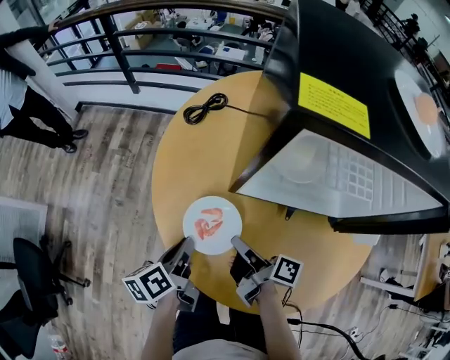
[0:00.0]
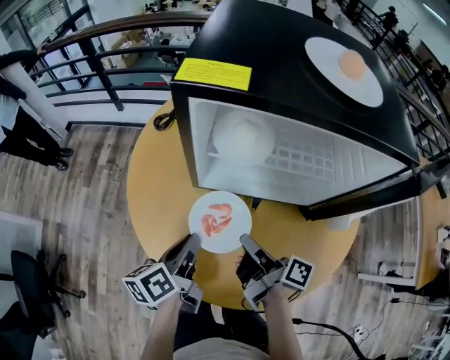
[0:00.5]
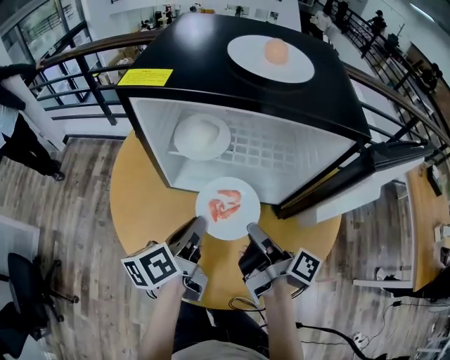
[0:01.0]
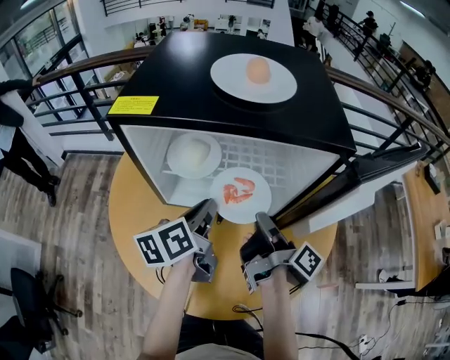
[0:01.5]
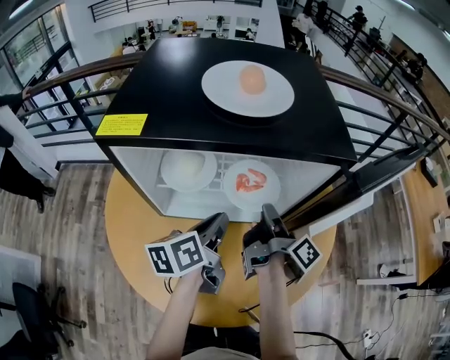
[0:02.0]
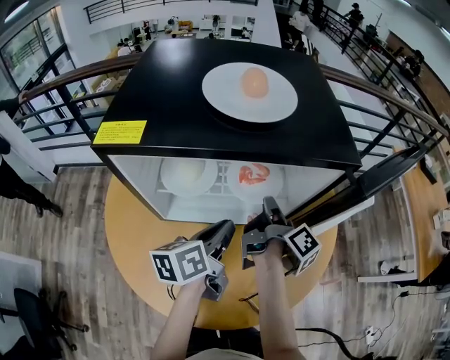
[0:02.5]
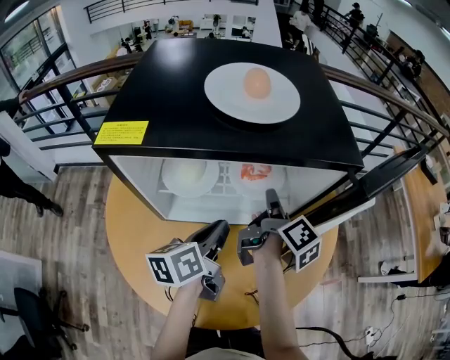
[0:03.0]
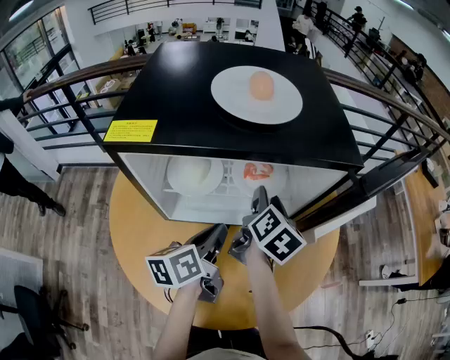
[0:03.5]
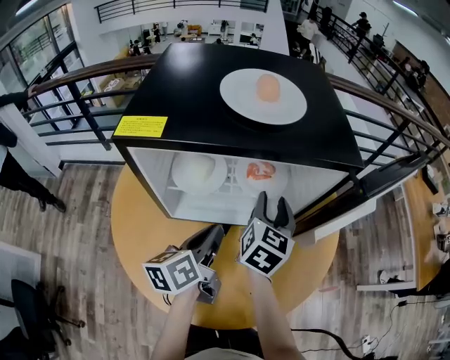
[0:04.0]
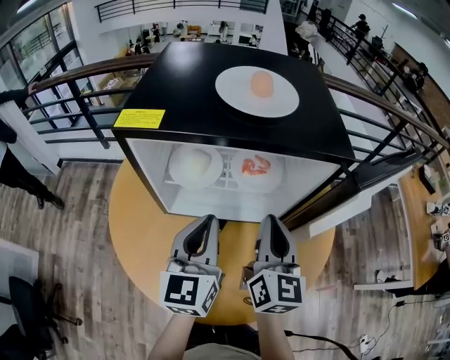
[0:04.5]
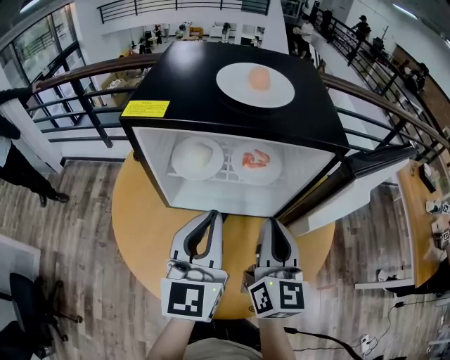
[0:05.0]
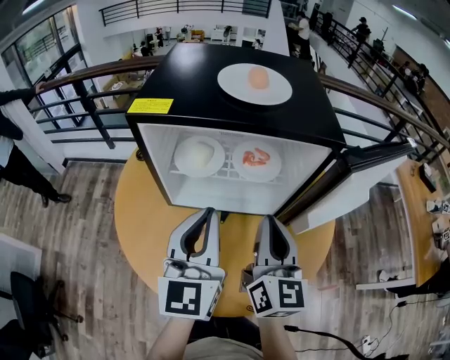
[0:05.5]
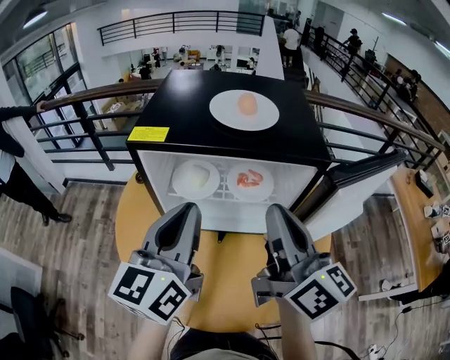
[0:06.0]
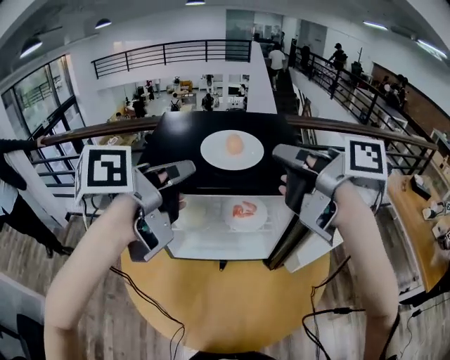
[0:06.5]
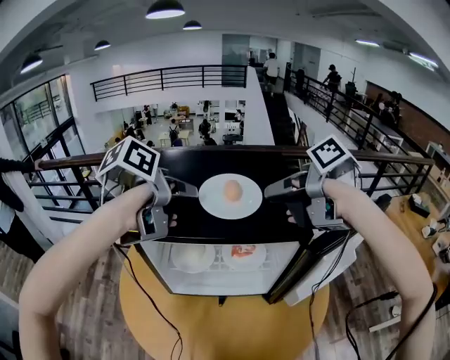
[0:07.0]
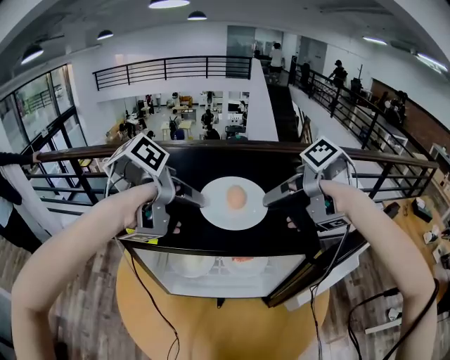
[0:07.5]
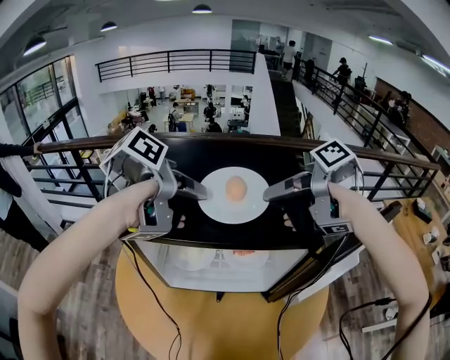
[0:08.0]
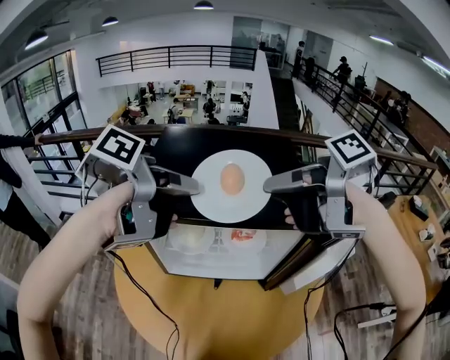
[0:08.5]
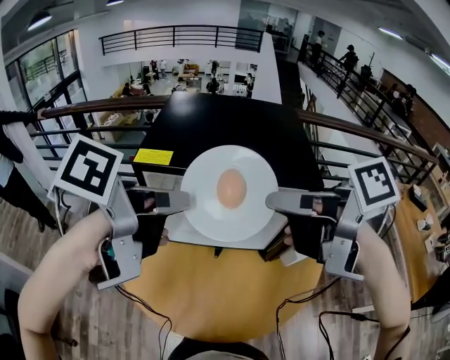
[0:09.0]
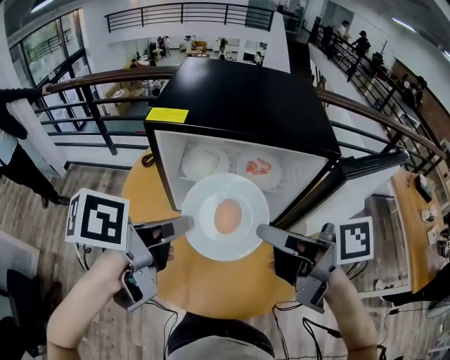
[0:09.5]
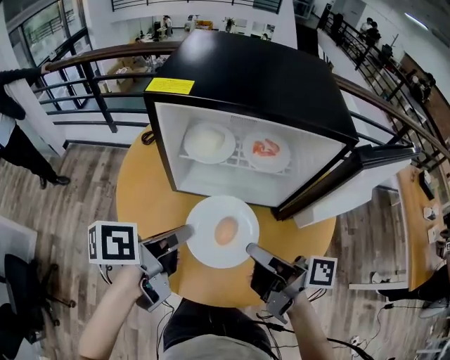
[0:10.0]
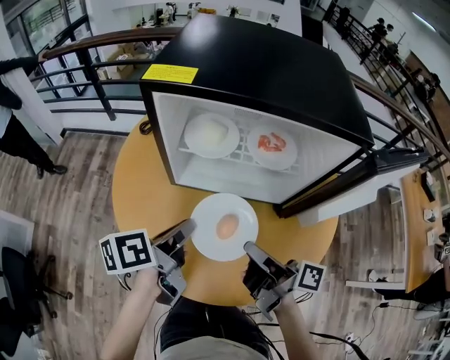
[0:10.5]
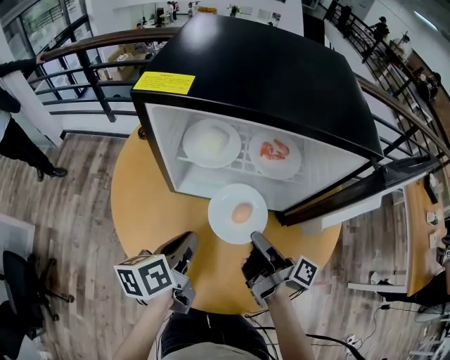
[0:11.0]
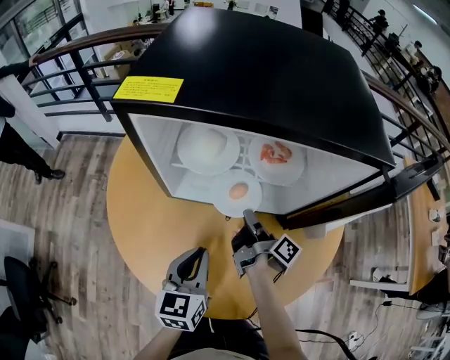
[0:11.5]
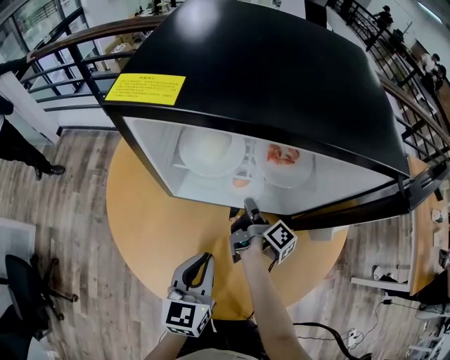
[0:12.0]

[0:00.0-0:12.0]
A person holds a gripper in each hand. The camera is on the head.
0:00.0 to 0:02.0: The right gripper moves roughly 35 cm, and turns by some 40 degrees. The left gripper changes place by some 35 cm, and turns by some 30 degrees.
0:02.0 to 0:04.0: The right gripper rolls counterclockwise, seen from behind, by approximately 80 degrees, and opens up.
0:04.0 to 0:06.0: The right gripper goes some 25 cm upward and backward, turns by about 50 degrees, and closes up, while the left gripper travels upward by some 20 cm, and swivels some 40 degrees.
0:06.0 to 0:08.0: The left gripper shifts by some 20 cm, points its fingers about 40 degrees further downward, and opens its fingers, while the right gripper ends up approximately 20 cm from where it was, and tips its fingers downward by roughly 40 degrees.
0:08.0 to 0:10.0: The right gripper ends up some 35 cm from where it was, and turns by approximately 30 degrees, while the left gripper shifts by roughly 35 cm.
0:10.0 to 0:12.0: The right gripper shifts some 30 cm downward and forward, and turns by approximately 40 degrees; the left gripper is displaced downward by some 10 cm, and rolls clockwise, seen from behind, by approximately 40 degrees.

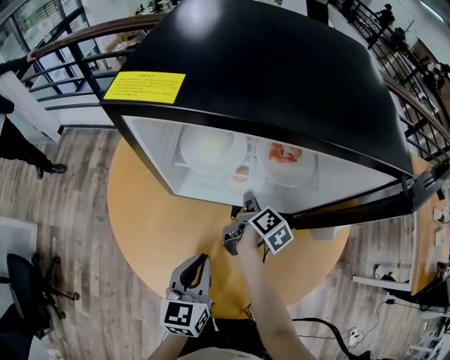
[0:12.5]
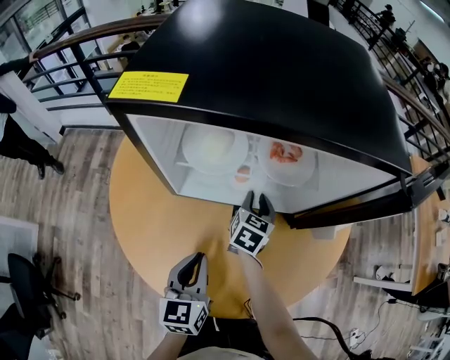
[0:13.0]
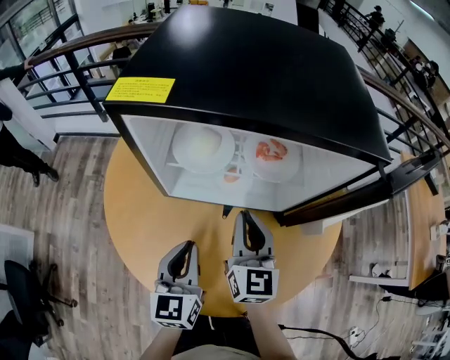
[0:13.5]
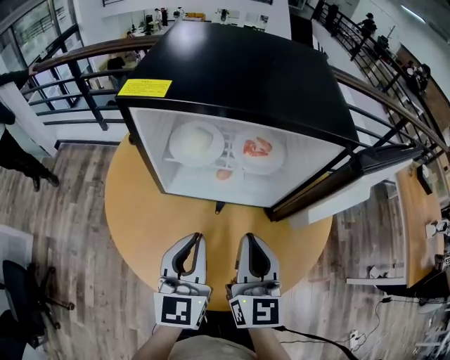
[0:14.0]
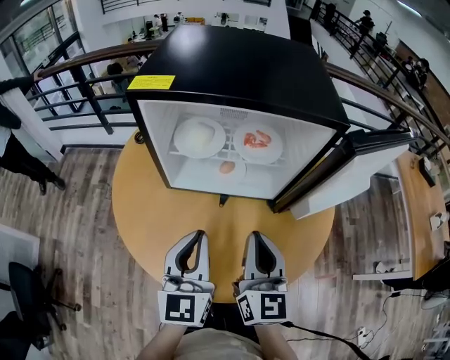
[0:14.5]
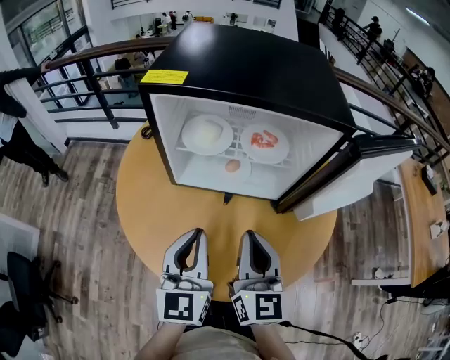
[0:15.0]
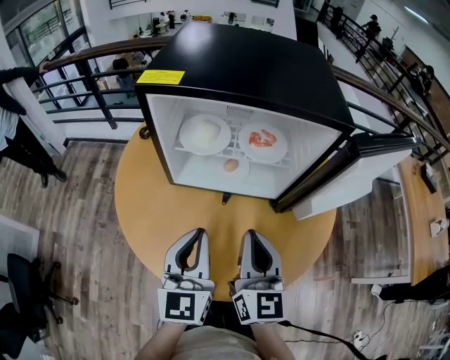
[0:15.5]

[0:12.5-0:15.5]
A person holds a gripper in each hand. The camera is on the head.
0:12.5 to 0:14.0: The right gripper travels upward and backward by about 30 cm, and rotates around the line of its fingers by about 60 degrees, counterclockwise from behind, while the left gripper heads upward, covering some 15 cm, and rotates roughly 20 degrees.
0:14.0 to 0:15.5: The grippers stay close to where they were, moving slightly.

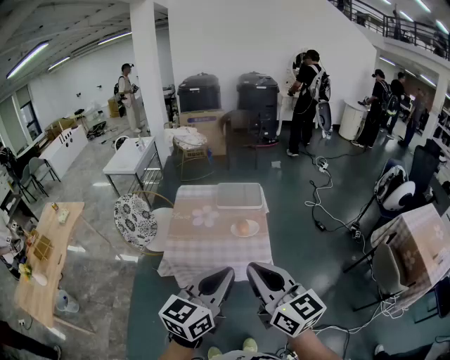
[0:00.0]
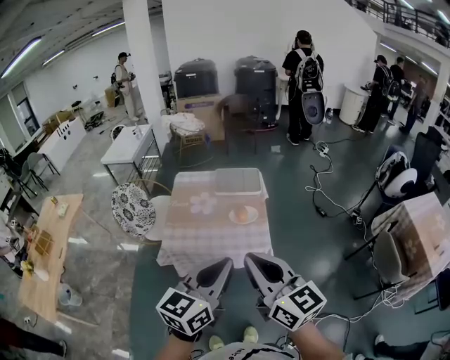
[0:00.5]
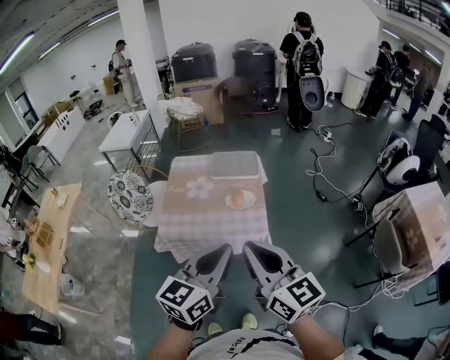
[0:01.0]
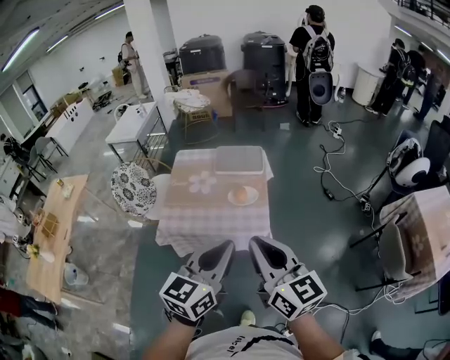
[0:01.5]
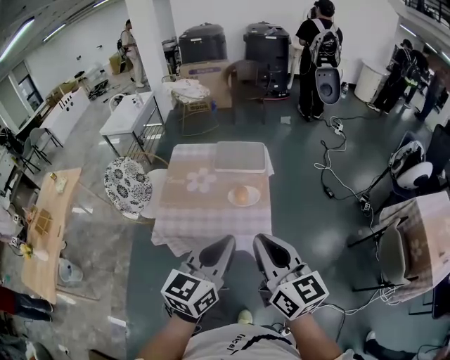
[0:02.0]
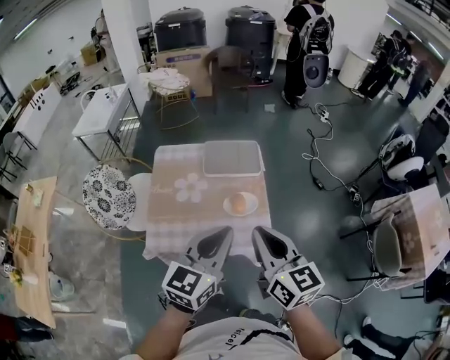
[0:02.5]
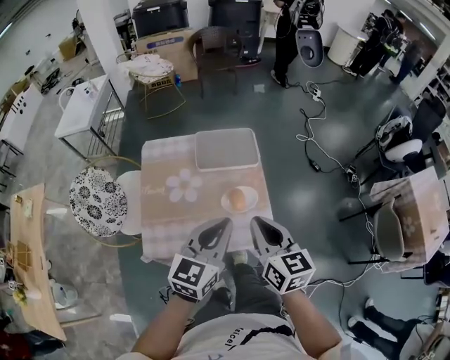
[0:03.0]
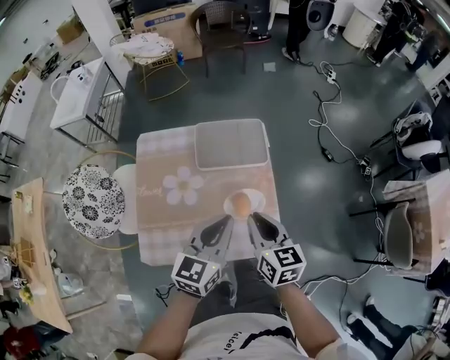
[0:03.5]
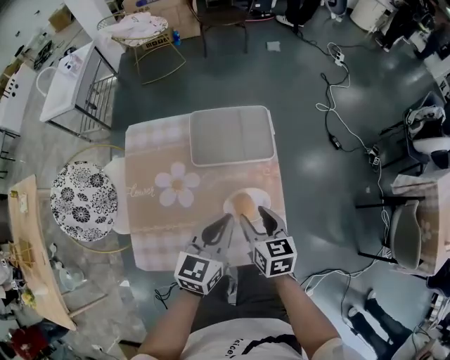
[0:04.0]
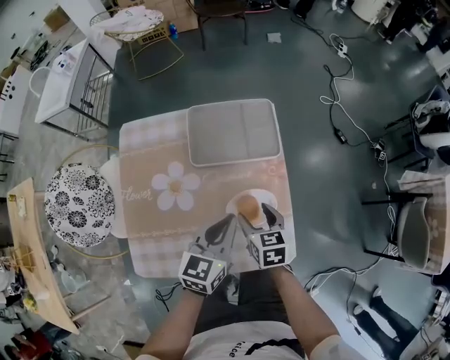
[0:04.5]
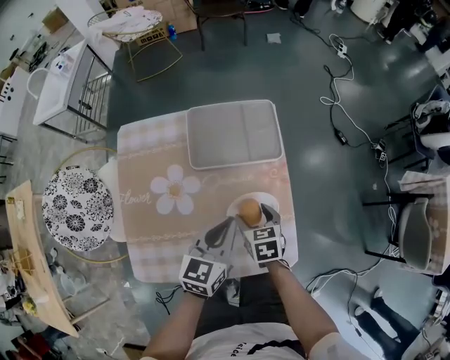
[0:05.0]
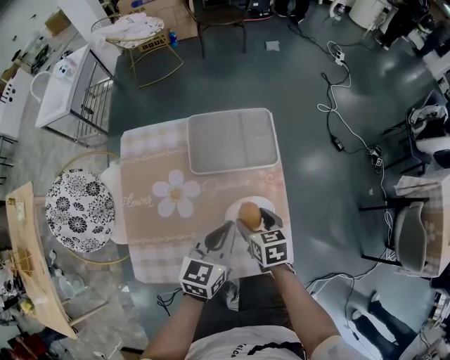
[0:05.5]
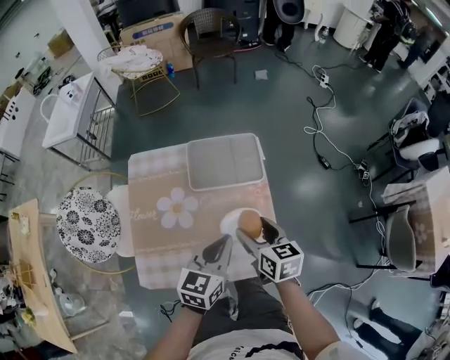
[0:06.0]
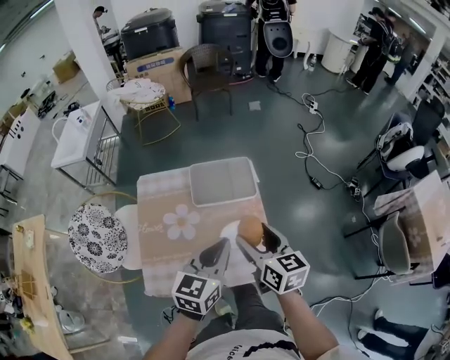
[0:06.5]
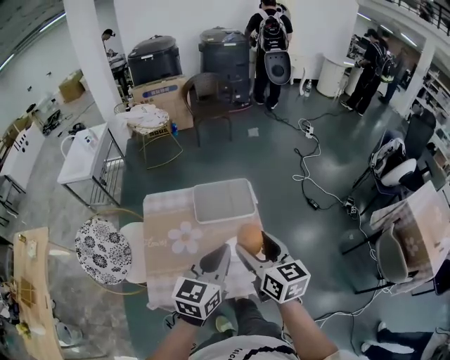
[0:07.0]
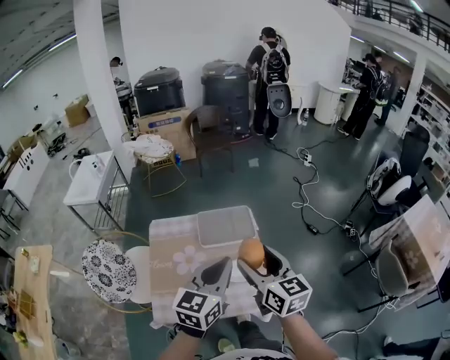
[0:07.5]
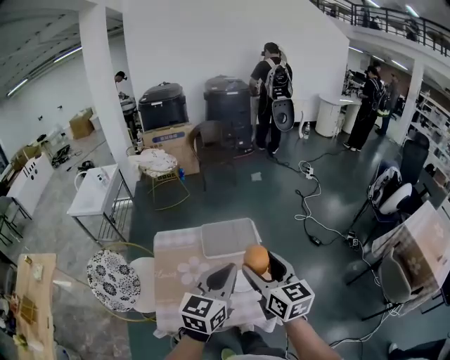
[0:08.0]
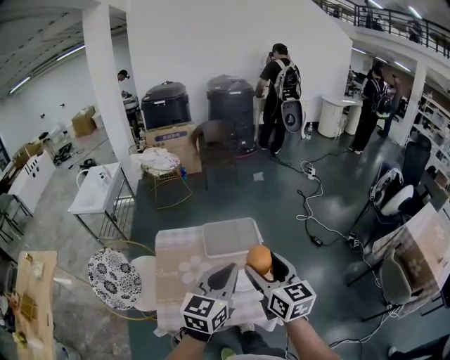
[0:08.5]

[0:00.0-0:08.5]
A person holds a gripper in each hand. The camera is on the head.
0:00.0 to 0:02.0: The right gripper moves forward, to the right and downward, some 15 cm; the left gripper goes roughly 10 cm forward and downward.
0:02.0 to 0:04.0: The left gripper travels forward and downward by about 40 cm; the right gripper goes some 50 cm downward and forward, angles its fingers downward, by approximately 40 degrees, and opens up.
0:04.0 to 0:06.5: The two grippers go some 15 cm upward.
0:06.5 to 0:08.5: The grippers both shift upward by about 15 cm.

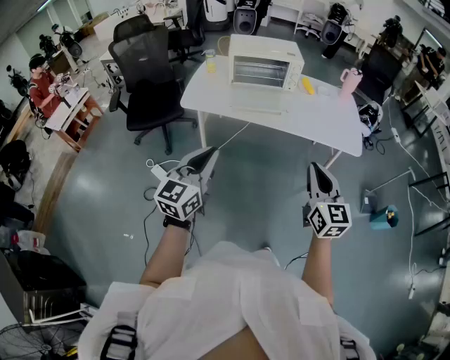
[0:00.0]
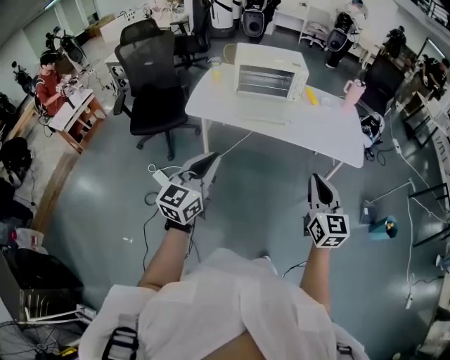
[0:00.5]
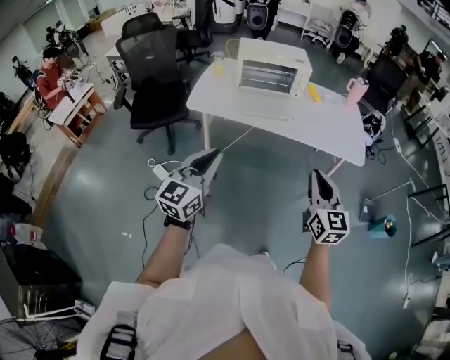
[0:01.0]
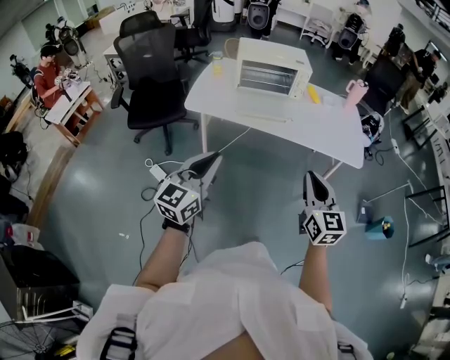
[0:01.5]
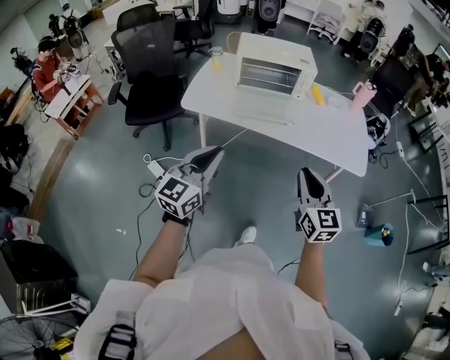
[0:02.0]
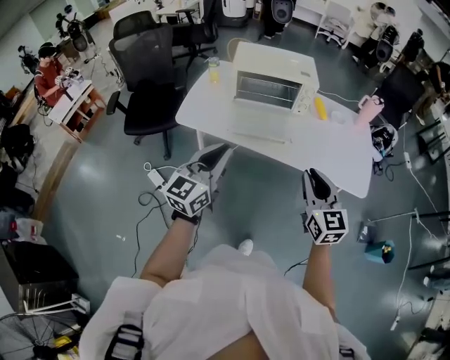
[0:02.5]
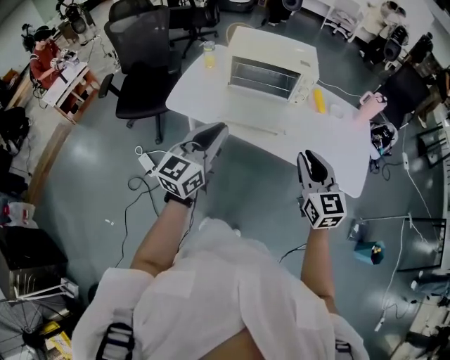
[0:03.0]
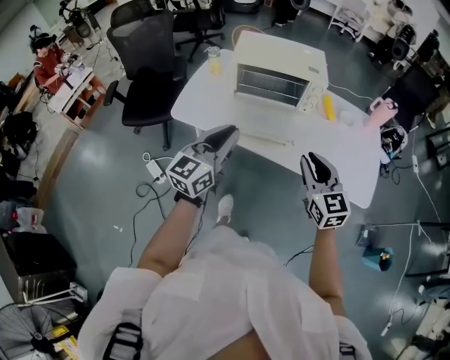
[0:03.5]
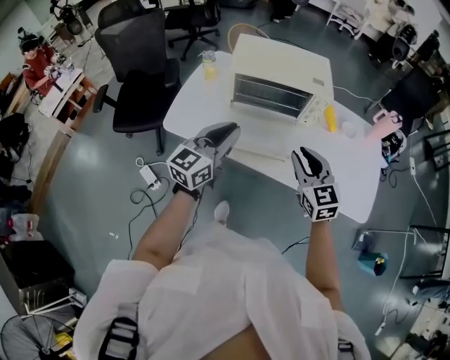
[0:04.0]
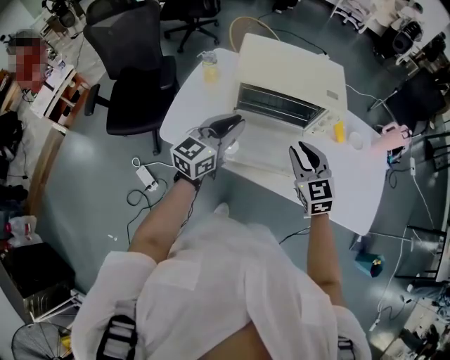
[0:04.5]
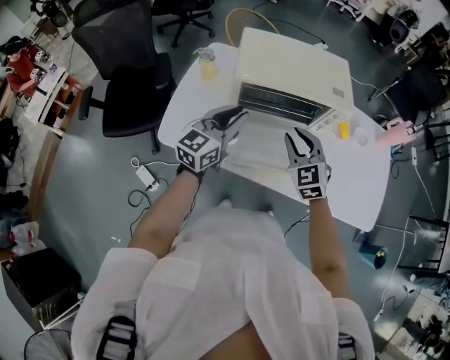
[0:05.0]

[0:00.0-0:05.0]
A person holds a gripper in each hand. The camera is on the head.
0:00.0 to 0:02.5: The grippers both shift forward by about 20 cm.
0:02.5 to 0:05.0: The two grippers go approximately 40 cm forward. The right gripper swivels roughly 30 degrees.
